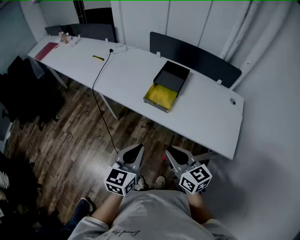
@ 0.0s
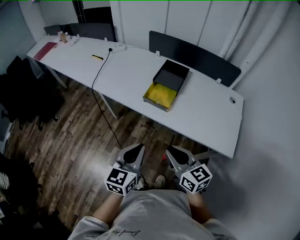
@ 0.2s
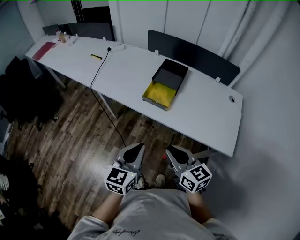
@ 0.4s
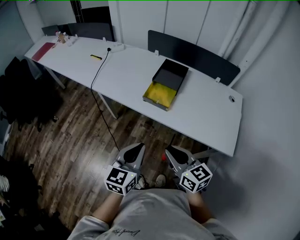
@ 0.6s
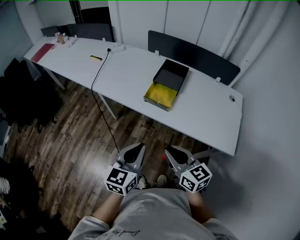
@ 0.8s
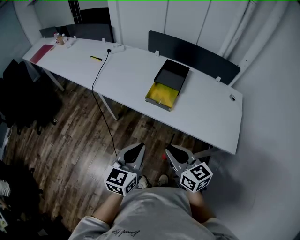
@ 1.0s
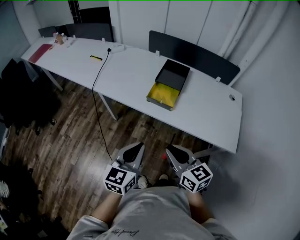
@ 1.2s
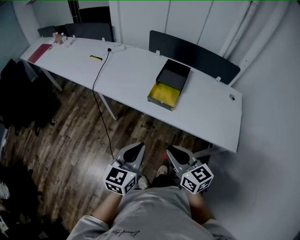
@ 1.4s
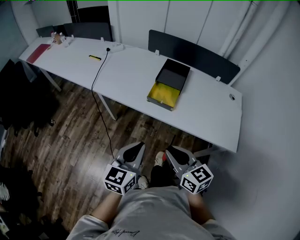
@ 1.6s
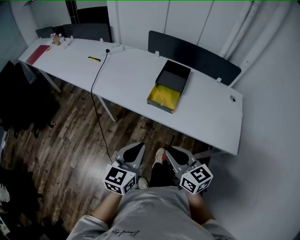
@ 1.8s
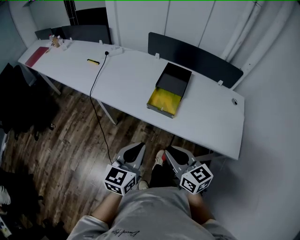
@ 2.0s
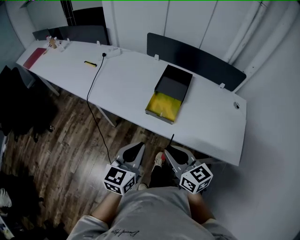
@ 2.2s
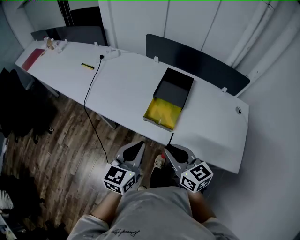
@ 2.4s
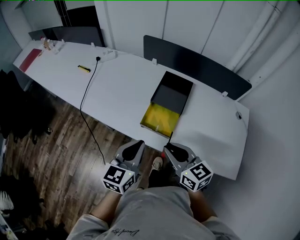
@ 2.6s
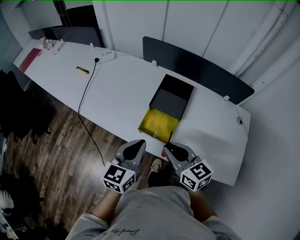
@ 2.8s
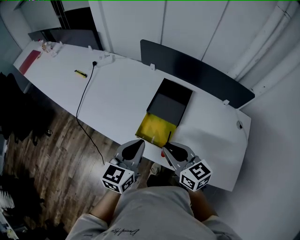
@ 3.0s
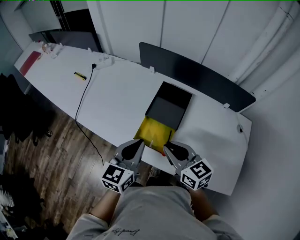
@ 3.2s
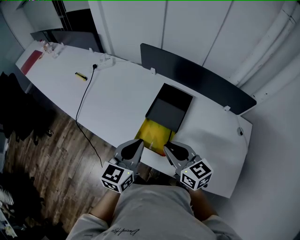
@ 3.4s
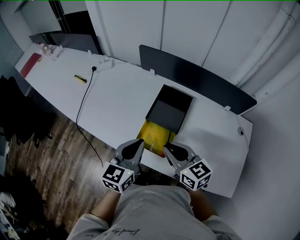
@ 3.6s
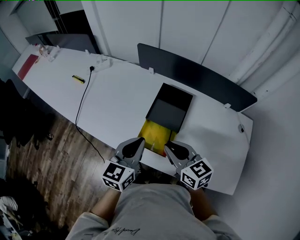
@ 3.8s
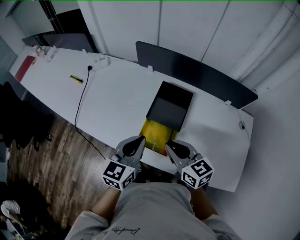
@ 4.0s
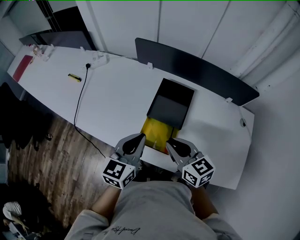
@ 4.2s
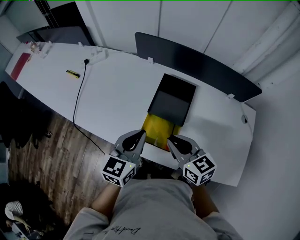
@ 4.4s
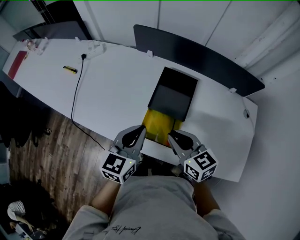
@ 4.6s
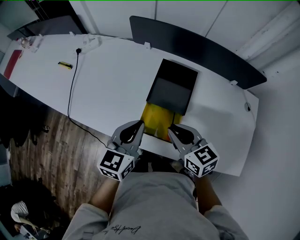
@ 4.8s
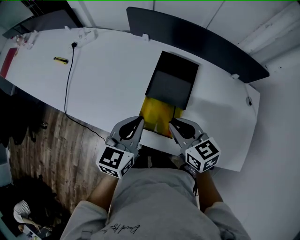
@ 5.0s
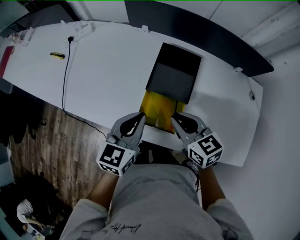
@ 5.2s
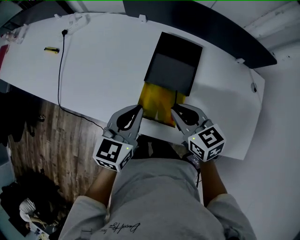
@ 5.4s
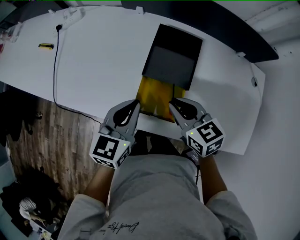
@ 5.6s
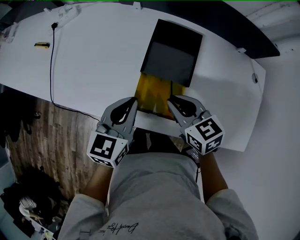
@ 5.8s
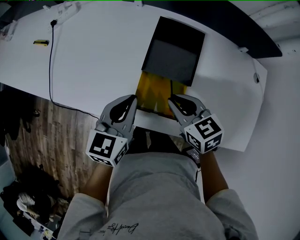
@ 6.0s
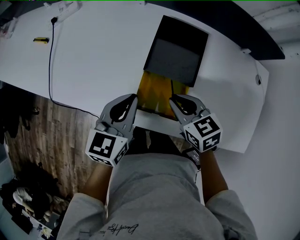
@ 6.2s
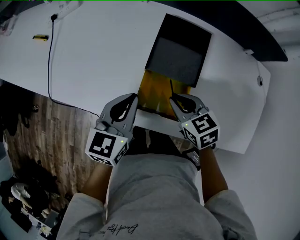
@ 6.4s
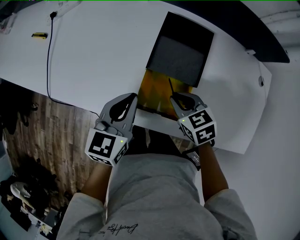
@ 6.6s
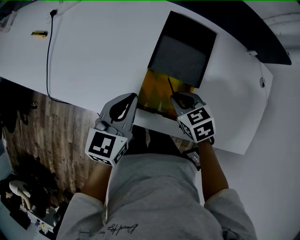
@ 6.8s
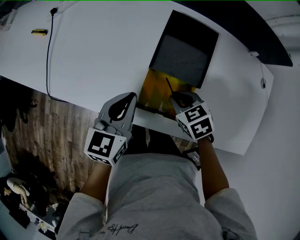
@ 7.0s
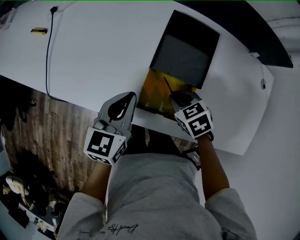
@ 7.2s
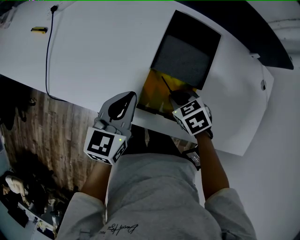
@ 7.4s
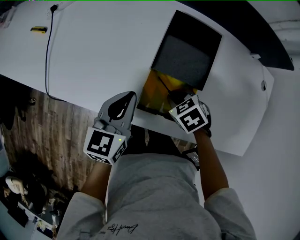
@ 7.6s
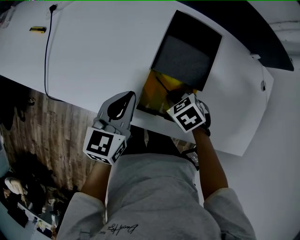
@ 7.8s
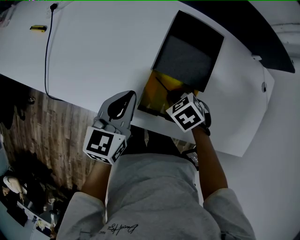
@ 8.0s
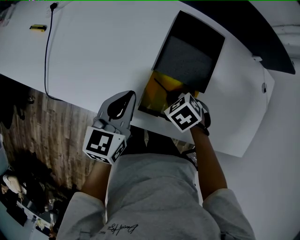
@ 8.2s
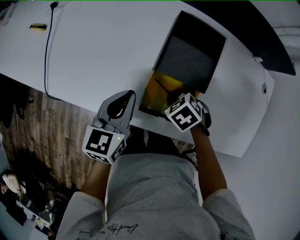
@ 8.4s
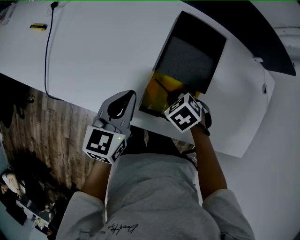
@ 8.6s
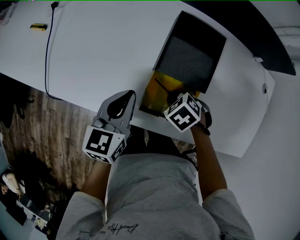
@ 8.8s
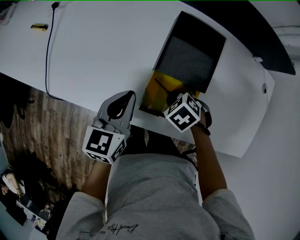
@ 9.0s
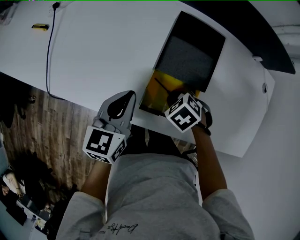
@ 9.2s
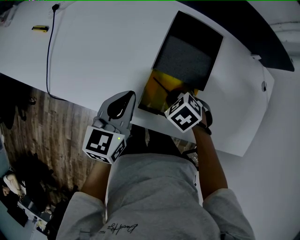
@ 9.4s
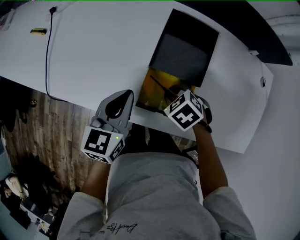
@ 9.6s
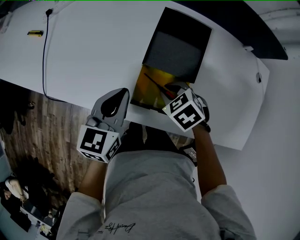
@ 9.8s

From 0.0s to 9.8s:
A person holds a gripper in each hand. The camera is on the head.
From 0.0s to 1.4s: The two grippers go some 5 cm to the left.
From 1.4s to 2.8s: Both grippers travel together forward, approximately 25 cm.
From 2.8s to 4.2s: The grippers both shift forward by approximately 10 cm.
From 4.2s to 5.6s: The two grippers go approximately 10 cm downward.
From 5.6s to 7.0s: The left gripper ends up some 5 cm from where it was. The right gripper shifts roughly 15 cm downward, and rotates some 30 degrees.
From 7.0s to 8.4s: The right gripper rotates some 20 degrees.
From 8.4s to 9.8s: There are only small adjustments of the grippers.

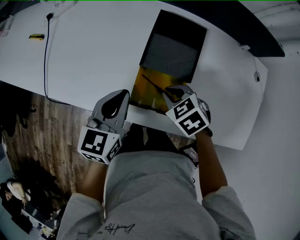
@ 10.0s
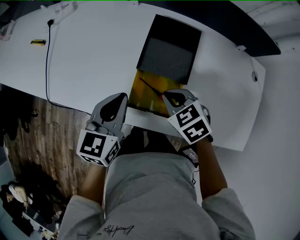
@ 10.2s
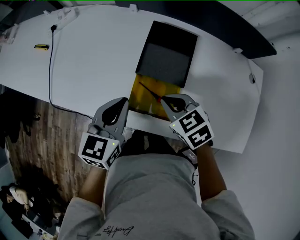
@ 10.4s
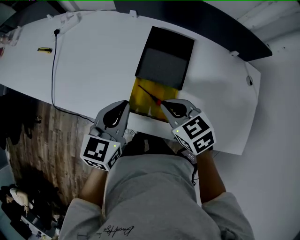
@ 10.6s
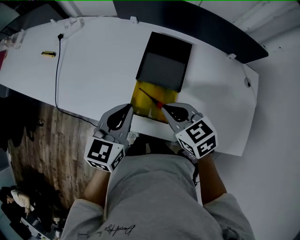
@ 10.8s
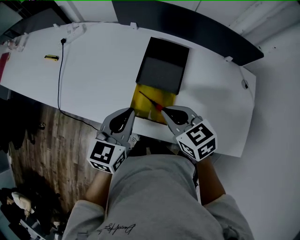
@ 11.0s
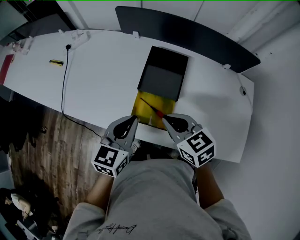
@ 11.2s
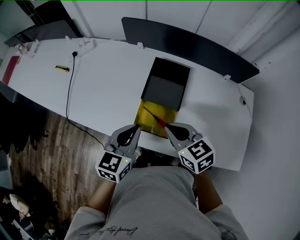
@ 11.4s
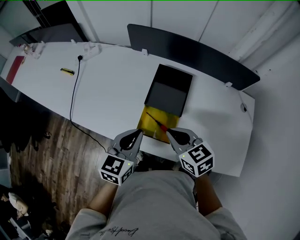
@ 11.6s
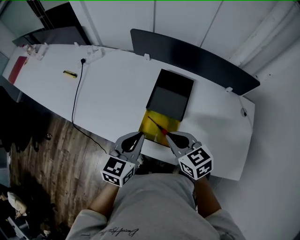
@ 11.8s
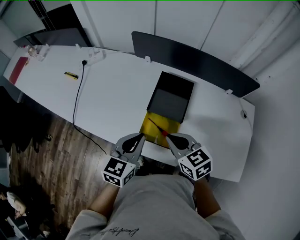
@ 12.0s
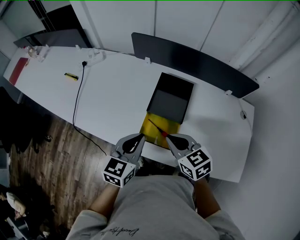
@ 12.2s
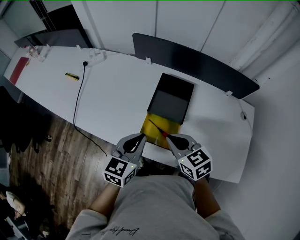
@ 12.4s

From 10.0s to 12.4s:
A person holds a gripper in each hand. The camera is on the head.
From 10.0s to 11.2s: The left gripper shifts roughly 10 cm upward and backward, while the right gripper is displaced upward by roughly 15 cm, and swivels roughly 30 degrees.
From 11.2s to 12.4s: There are only small adjustments of the grippers.

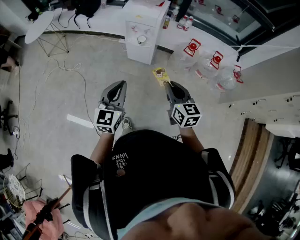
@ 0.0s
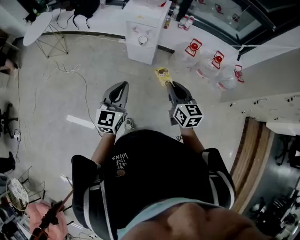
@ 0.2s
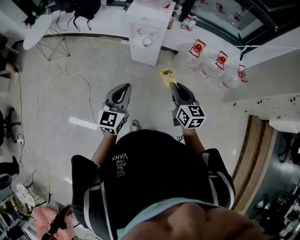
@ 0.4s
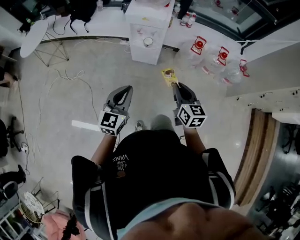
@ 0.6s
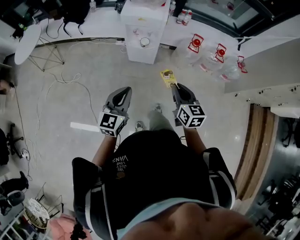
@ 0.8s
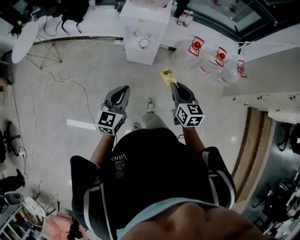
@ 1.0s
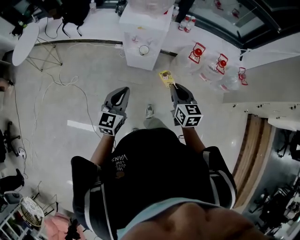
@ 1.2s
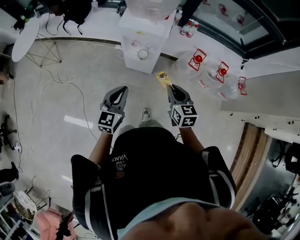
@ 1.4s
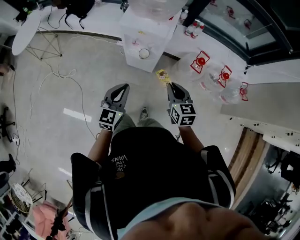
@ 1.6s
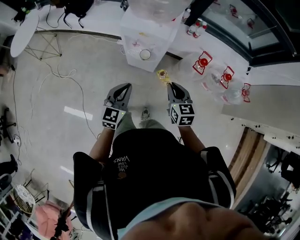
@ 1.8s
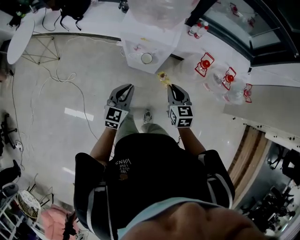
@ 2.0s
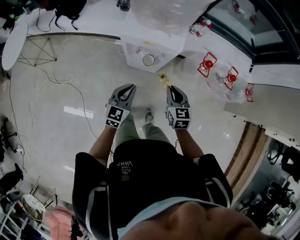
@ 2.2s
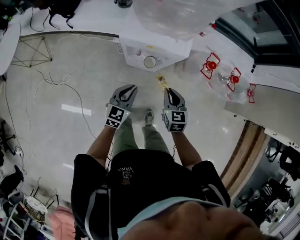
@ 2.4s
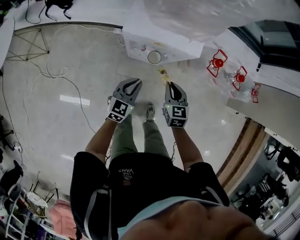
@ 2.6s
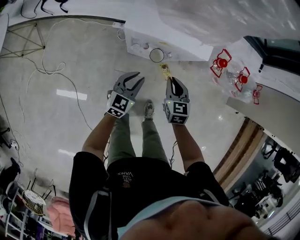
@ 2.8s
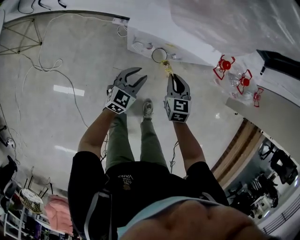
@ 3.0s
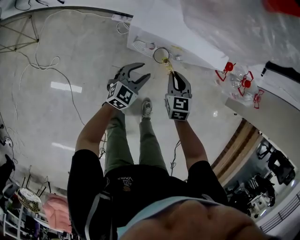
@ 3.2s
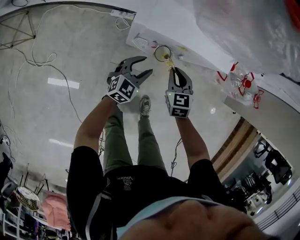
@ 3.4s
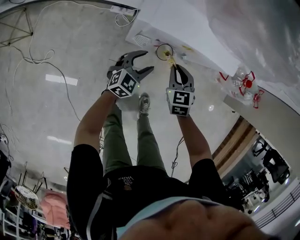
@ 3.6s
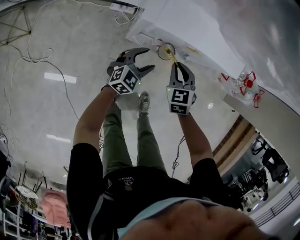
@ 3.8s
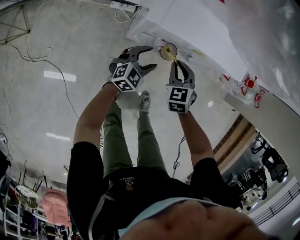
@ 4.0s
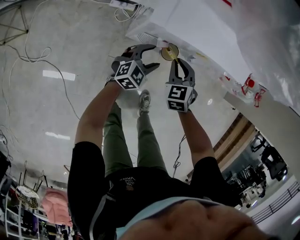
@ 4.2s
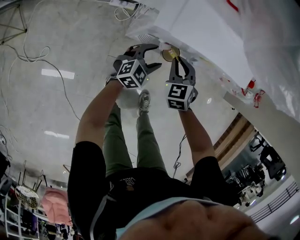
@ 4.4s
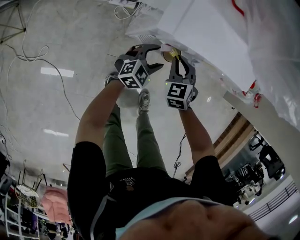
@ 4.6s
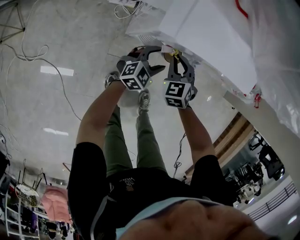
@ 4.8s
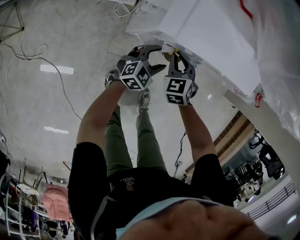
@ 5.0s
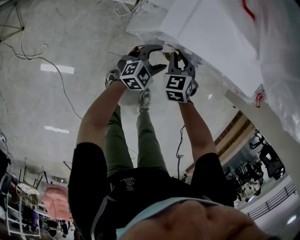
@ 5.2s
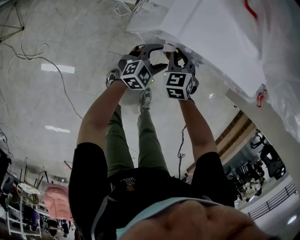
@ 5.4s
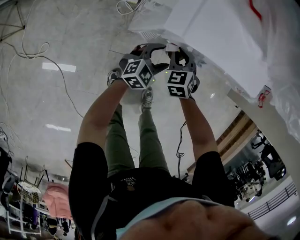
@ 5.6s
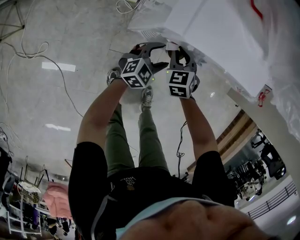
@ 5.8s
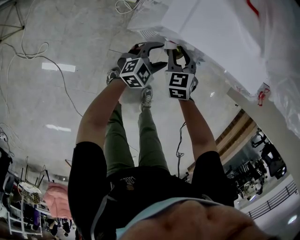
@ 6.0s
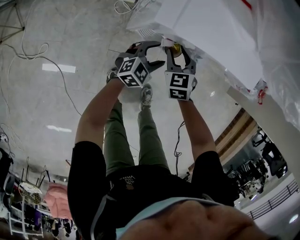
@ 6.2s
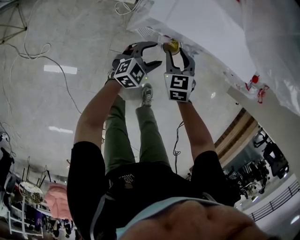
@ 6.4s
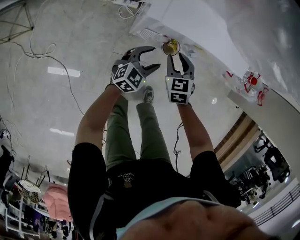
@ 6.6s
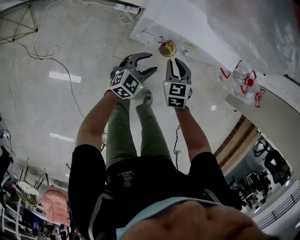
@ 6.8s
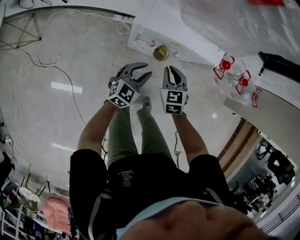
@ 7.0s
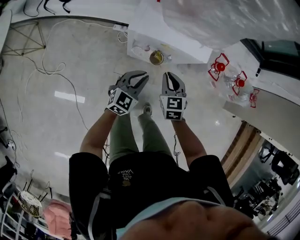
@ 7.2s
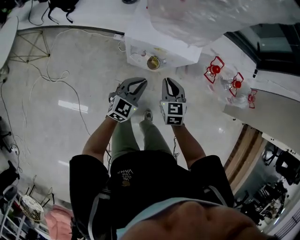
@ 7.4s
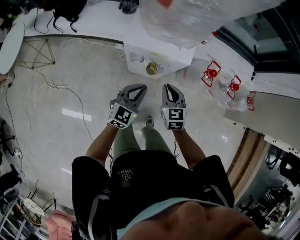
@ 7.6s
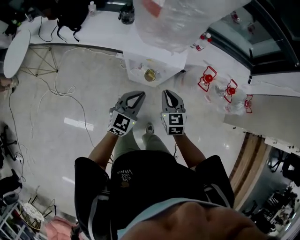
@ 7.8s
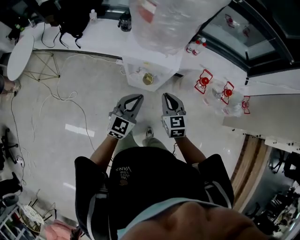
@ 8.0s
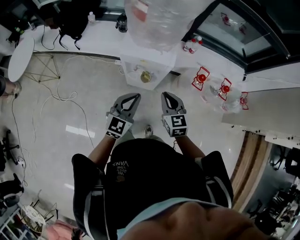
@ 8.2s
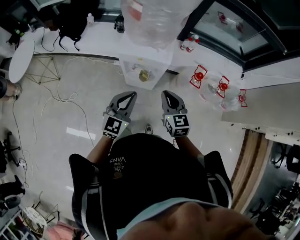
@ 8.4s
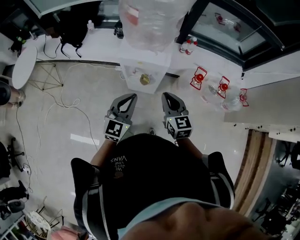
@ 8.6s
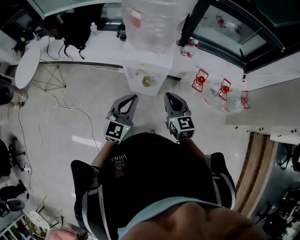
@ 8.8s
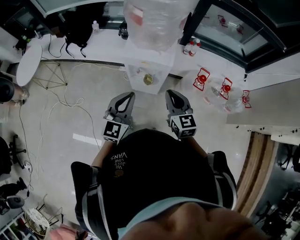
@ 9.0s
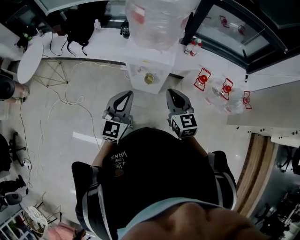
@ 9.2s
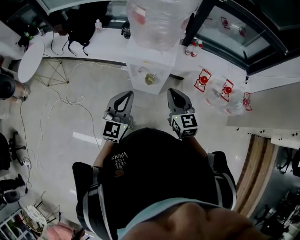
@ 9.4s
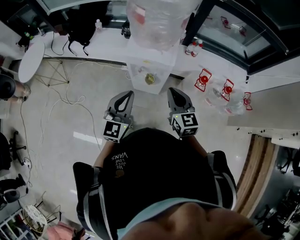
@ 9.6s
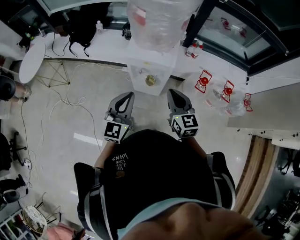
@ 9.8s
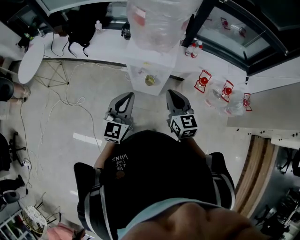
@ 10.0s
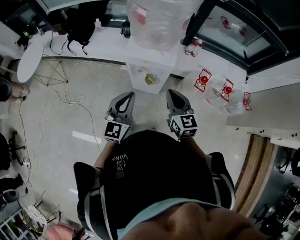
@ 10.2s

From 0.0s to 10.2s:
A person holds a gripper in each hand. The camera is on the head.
From 0.0s to 1.4s: Both grippers move forward, about 25 cm.
From 1.4s to 3.0s: The right gripper shifts roughly 40 cm downward, forward and to the left. The left gripper goes roughly 40 cm downward and forward, rotates approximately 20 degrees, and opens its fingers.
From 3.0s to 4.4s: The right gripper heads downward, to the left and forward, covering roughly 15 cm, and rotates some 30 degrees. Meanwhile the left gripper travels downward and forward by approximately 15 cm, and opens its fingers.
From 4.4s to 5.8s: The right gripper shifts by about 5 cm.
From 5.8s to 7.2s: The two grippers go roughly 20 cm upward and backward. The left gripper closes. Meanwhile the right gripper rotates some 20 degrees, and opens, then closes once more.
From 7.2s to 8.8s: The grippers both shift upward and backward by about 35 cm. The left gripper rotates approximately 20 degrees. Meanwhile the right gripper rotates approximately 20 degrees.
From 8.8s to 10.2s: The grippers move only a little.

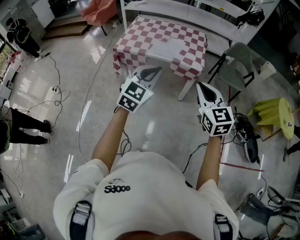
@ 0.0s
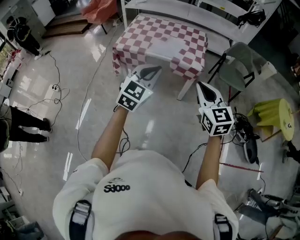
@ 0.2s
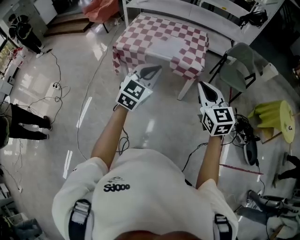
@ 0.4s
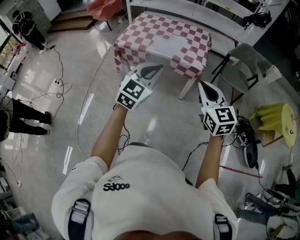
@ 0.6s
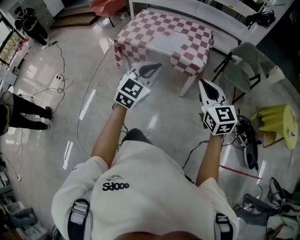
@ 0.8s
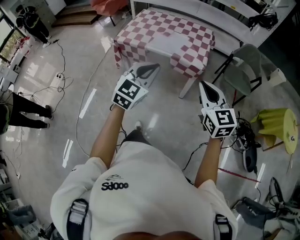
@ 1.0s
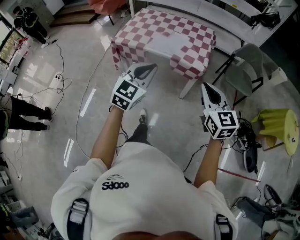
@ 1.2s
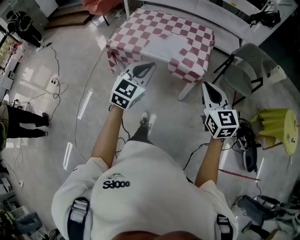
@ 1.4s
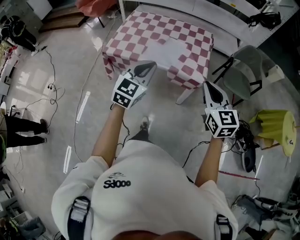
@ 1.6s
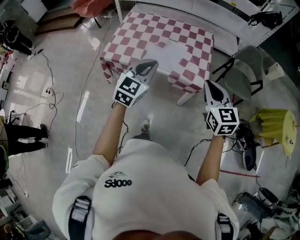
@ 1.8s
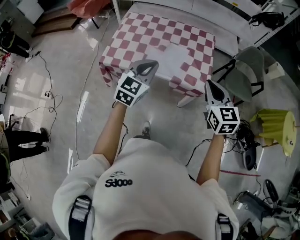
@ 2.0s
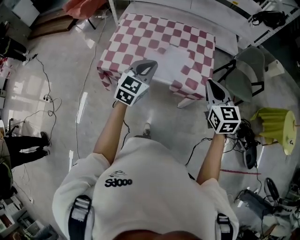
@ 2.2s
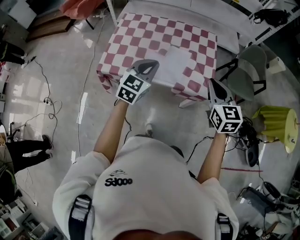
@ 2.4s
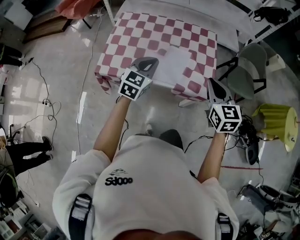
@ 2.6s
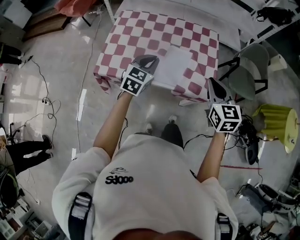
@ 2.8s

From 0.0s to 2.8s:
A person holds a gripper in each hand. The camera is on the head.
From 0.0s to 1.4s: The left gripper heads forward, covering about 15 cm. Meanwhile the right gripper heads forward and to the right, covering roughly 15 cm.
From 1.4s to 2.8s: The two grippers go some 35 cm forward.
